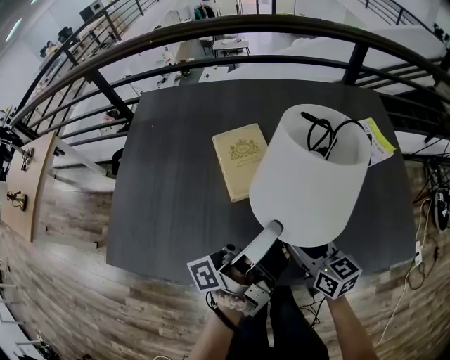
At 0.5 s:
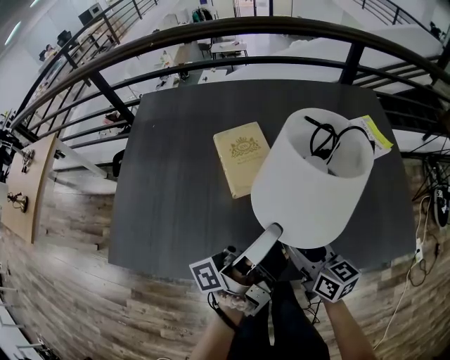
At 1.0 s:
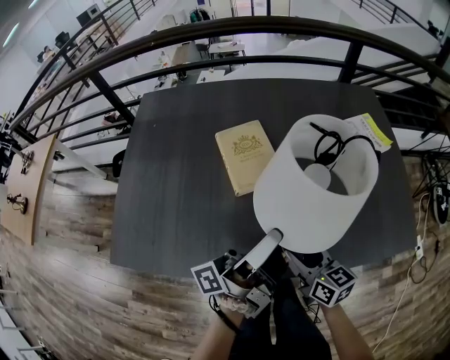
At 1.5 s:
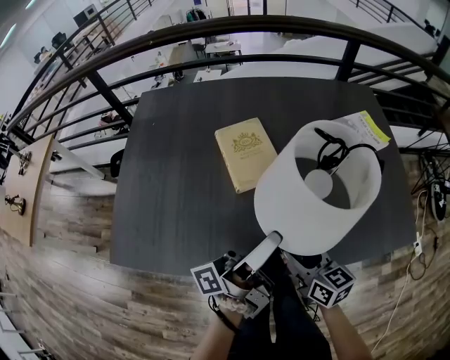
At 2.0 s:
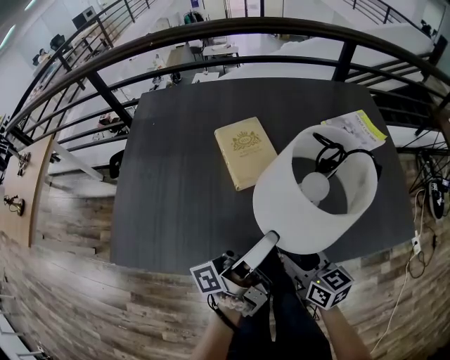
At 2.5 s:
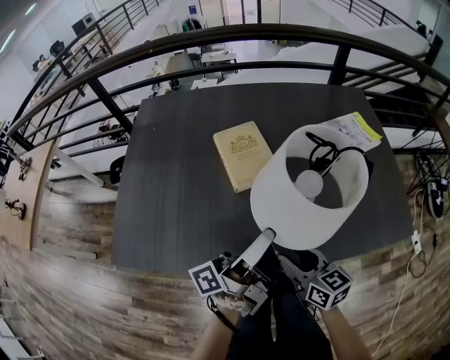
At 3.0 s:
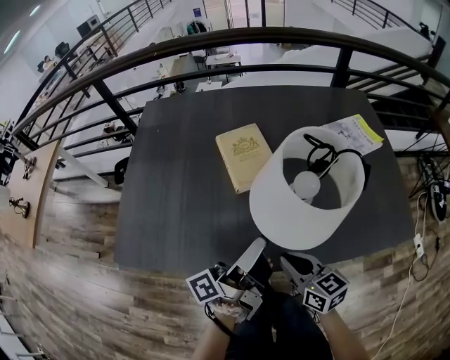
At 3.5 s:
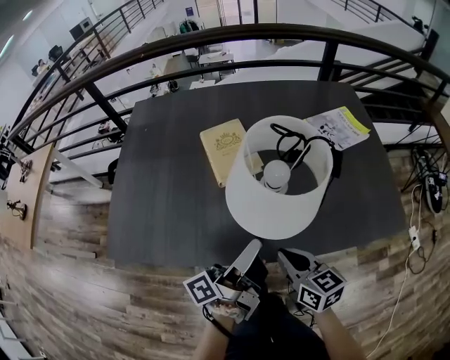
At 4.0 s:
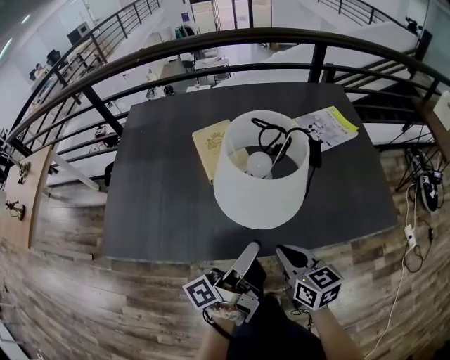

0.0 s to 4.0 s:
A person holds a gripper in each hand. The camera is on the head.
0.0 to 2.0 s: The right gripper ends up some 10 cm from where it was.
2.0 to 4.0 s: The right gripper shifts by approximately 10 cm, and closes up.

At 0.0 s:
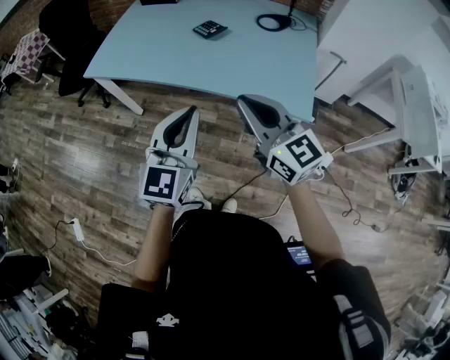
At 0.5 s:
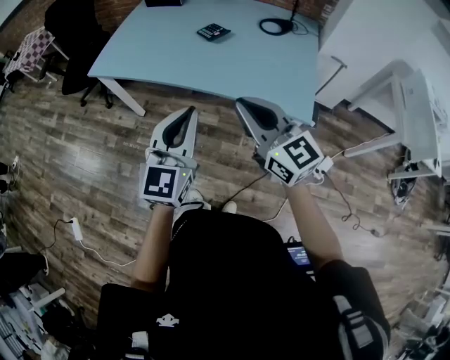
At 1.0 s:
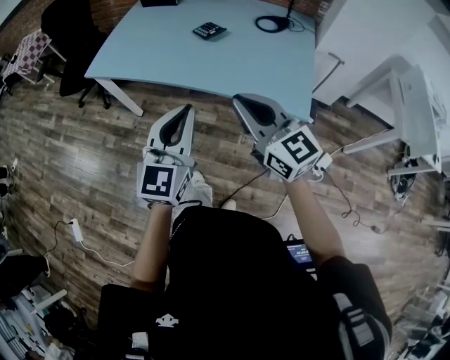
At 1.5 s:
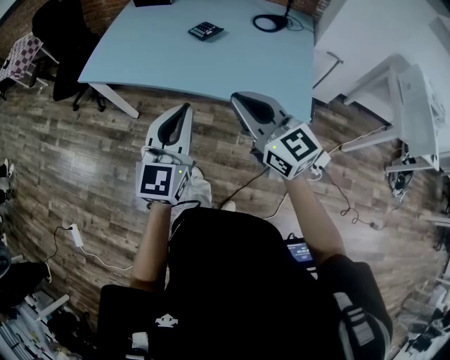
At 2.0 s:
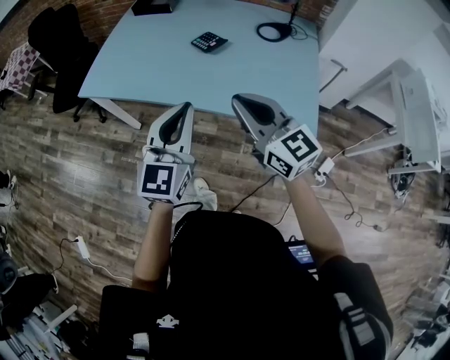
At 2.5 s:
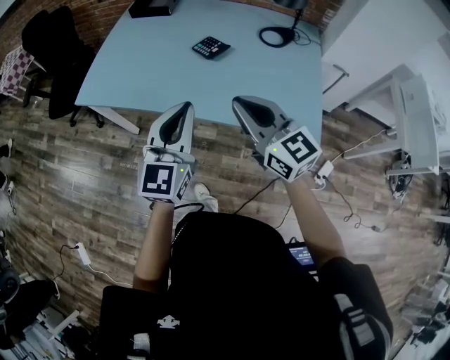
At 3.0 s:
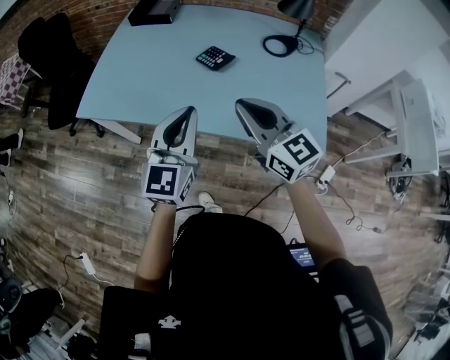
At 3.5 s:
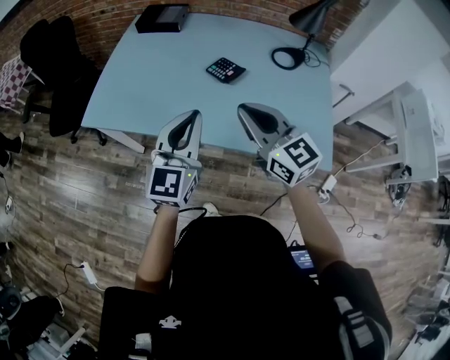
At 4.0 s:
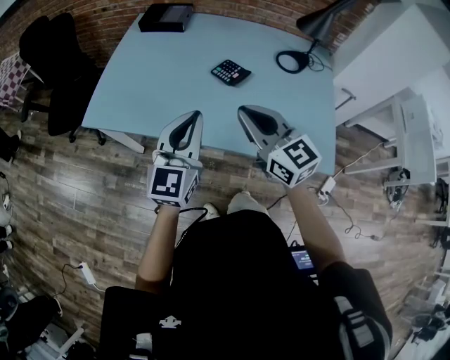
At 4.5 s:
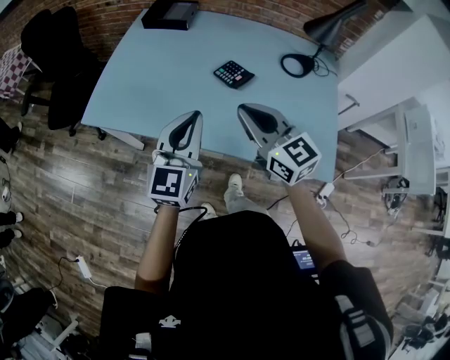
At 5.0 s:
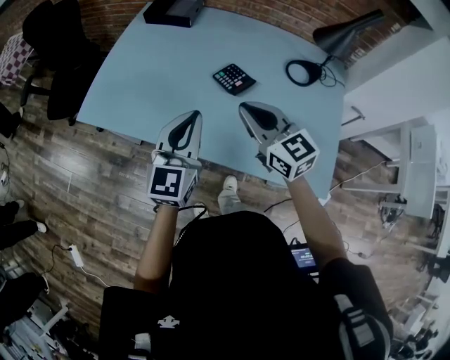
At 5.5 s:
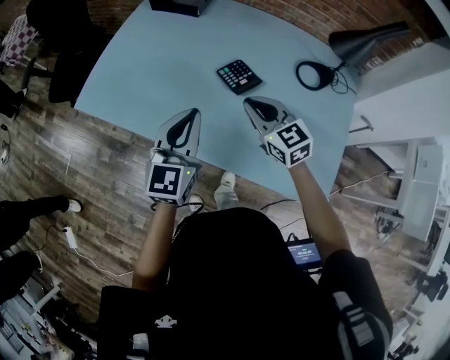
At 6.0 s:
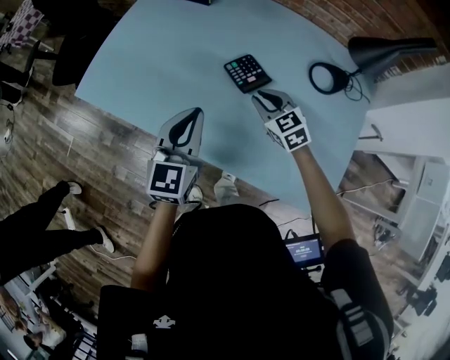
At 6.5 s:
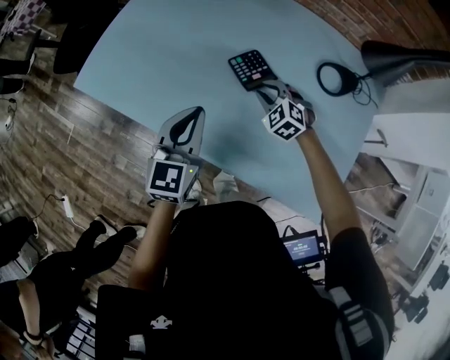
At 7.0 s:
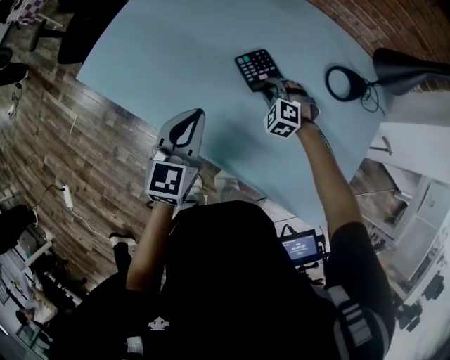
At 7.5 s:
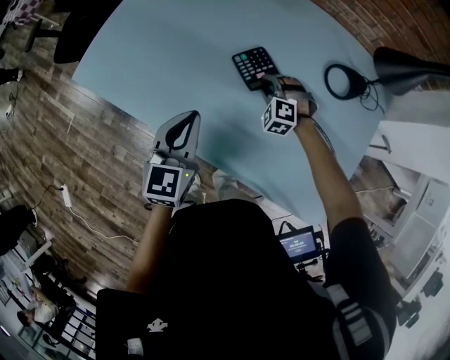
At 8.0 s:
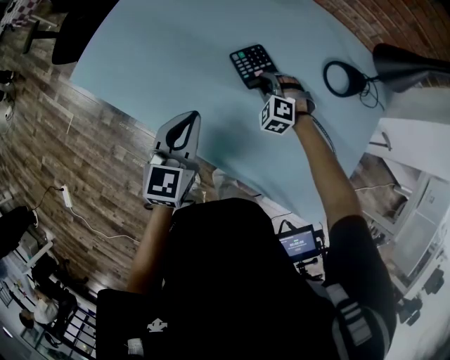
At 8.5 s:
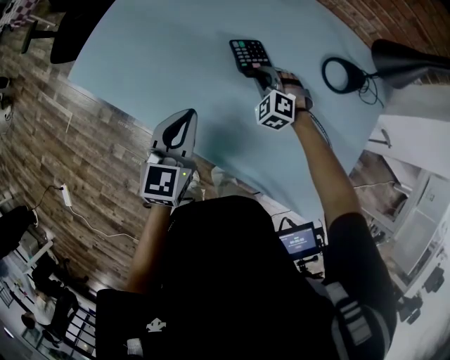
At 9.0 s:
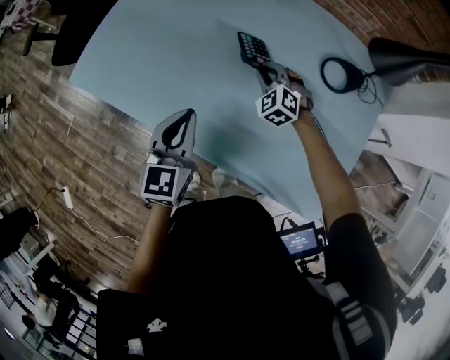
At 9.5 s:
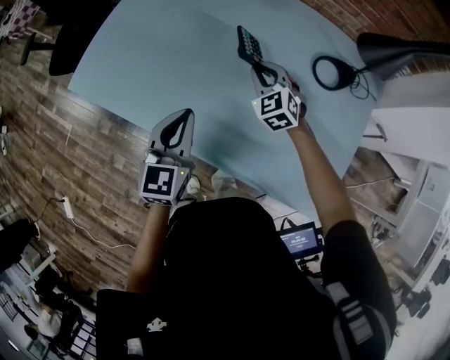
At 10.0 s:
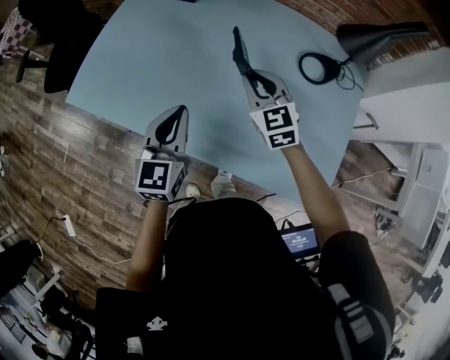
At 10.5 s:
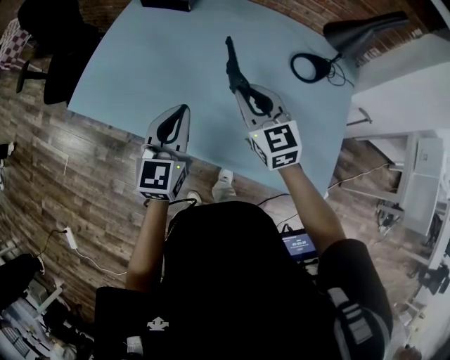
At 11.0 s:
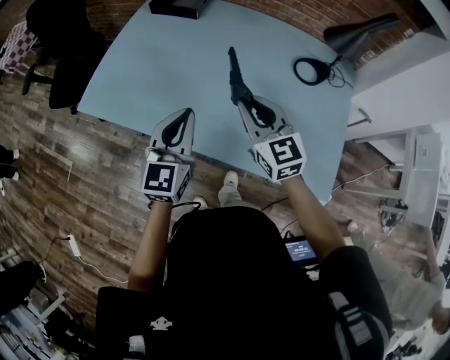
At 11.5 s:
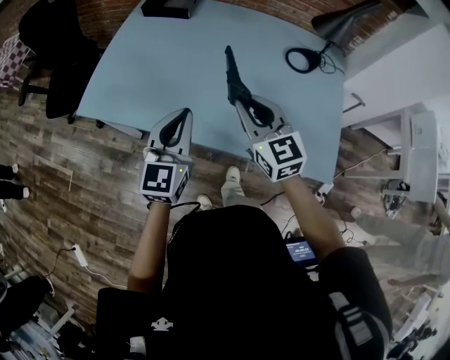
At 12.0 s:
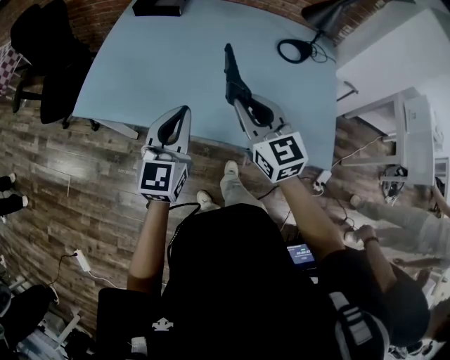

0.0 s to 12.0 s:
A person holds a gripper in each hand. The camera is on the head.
0.0 to 2.0 s: Both grippers travel together forward, roughly 10 cm.
2.0 to 4.0 s: Both grippers travel together forward and to the left, approximately 20 cm.
4.0 to 6.0 s: The left gripper moves forward, downward and to the right, roughly 15 cm. Meanwhile the right gripper shifts roughly 30 cm downward, forward and to the right, and angles its fingers downward, by some 30 degrees.
6.0 to 8.0 s: The right gripper heads downward and forward, covering approximately 15 cm, and twists some 50 degrees counterclockwise, seen from behind, while the left gripper travels downward by about 5 cm.
8.0 to 10.0 s: The right gripper travels upward by some 20 cm, and rolls clockwise, seen from behind, by approximately 50 degrees.
10.0 to 12.0 s: The right gripper goes about 20 cm backward and upward. Meanwhile the left gripper moves backward and upward, approximately 10 cm.

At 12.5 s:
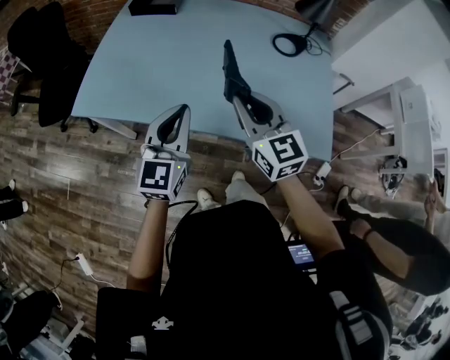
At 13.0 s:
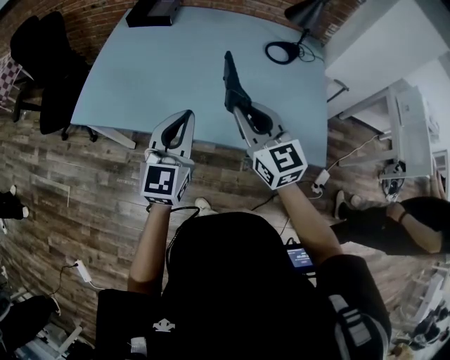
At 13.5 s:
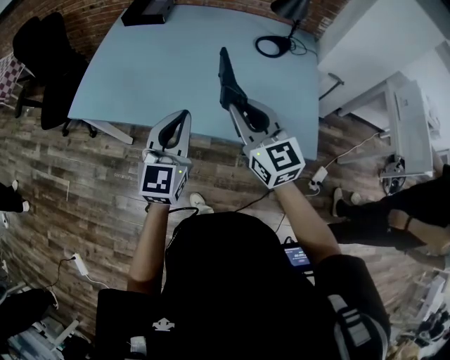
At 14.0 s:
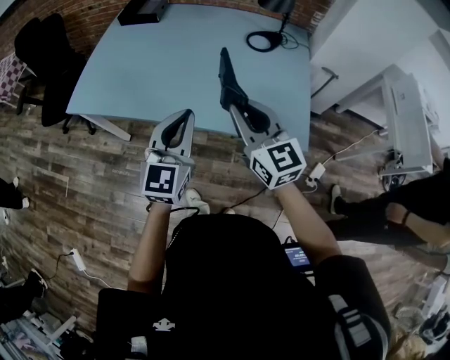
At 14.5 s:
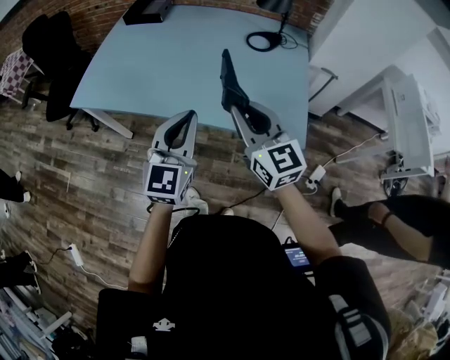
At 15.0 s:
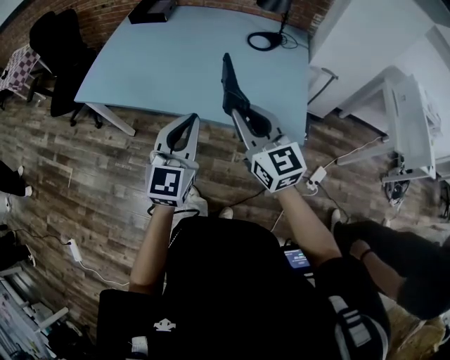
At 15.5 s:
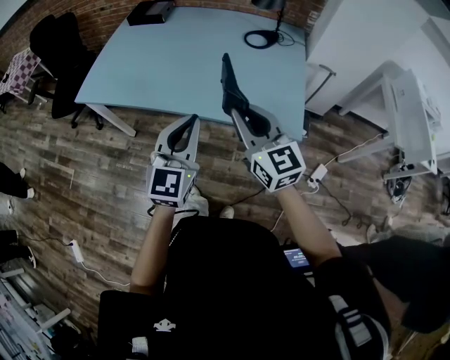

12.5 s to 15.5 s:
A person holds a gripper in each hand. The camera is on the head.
12.5 to 14.0 s: The two grippers go about 15 cm to the right and backward.
14.0 to 15.5 s: Both grippers move backward, some 10 cm.

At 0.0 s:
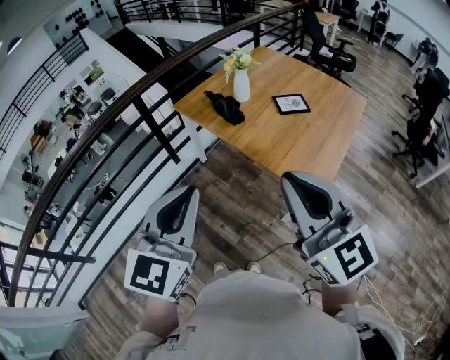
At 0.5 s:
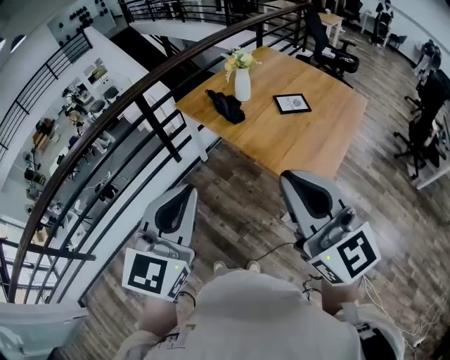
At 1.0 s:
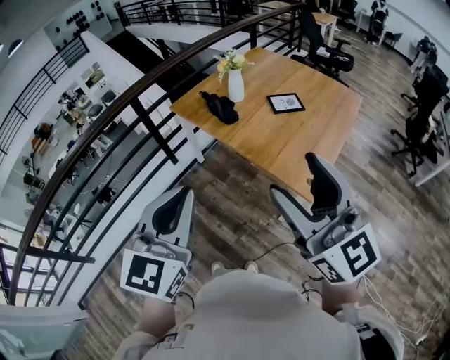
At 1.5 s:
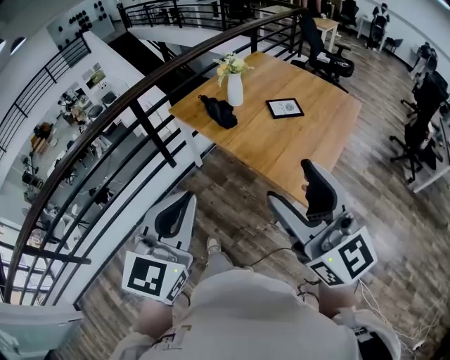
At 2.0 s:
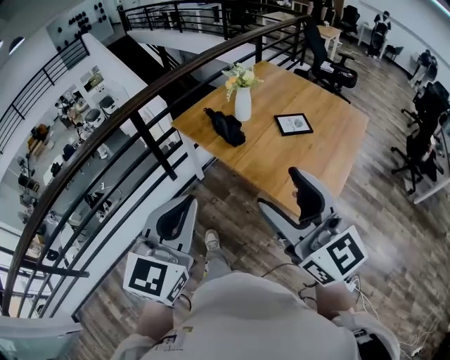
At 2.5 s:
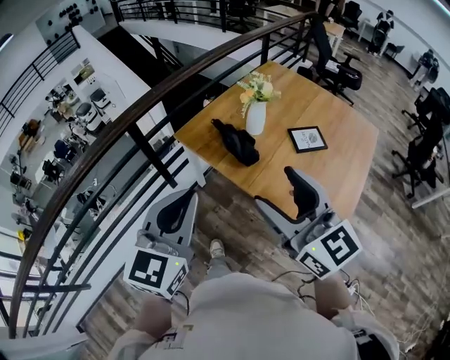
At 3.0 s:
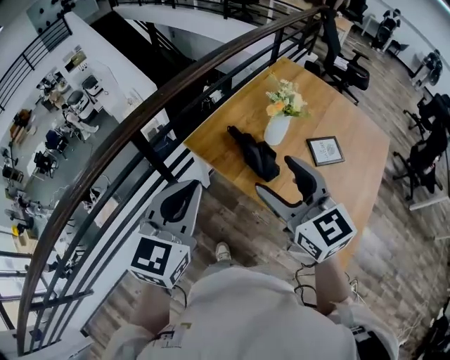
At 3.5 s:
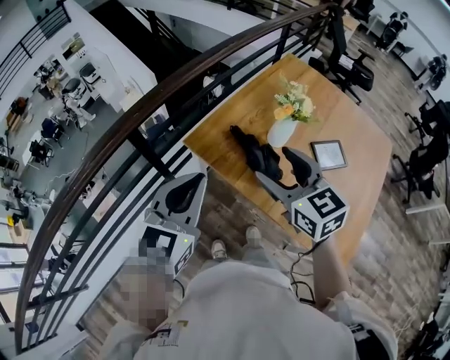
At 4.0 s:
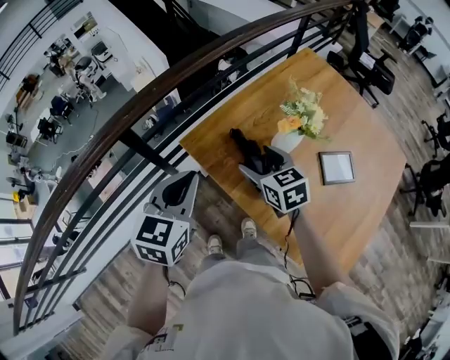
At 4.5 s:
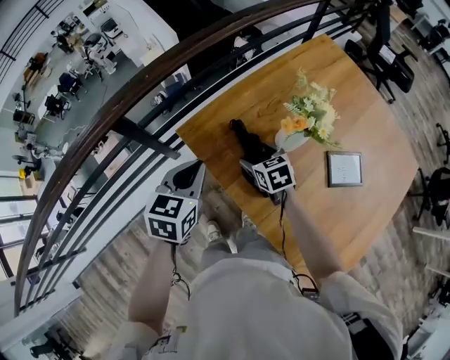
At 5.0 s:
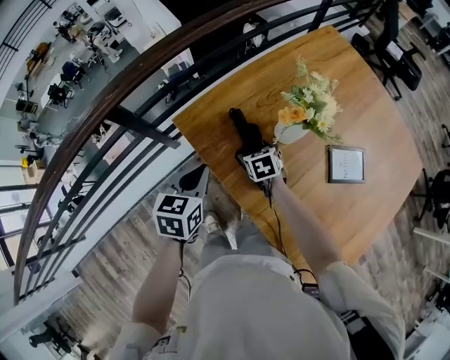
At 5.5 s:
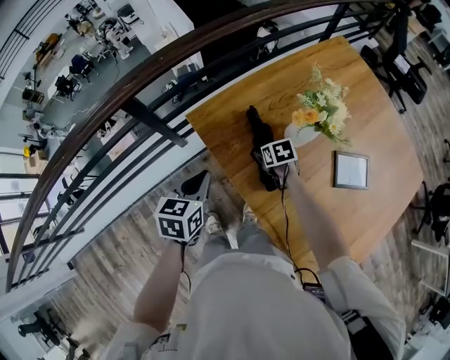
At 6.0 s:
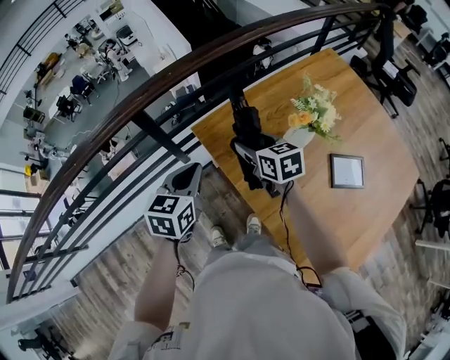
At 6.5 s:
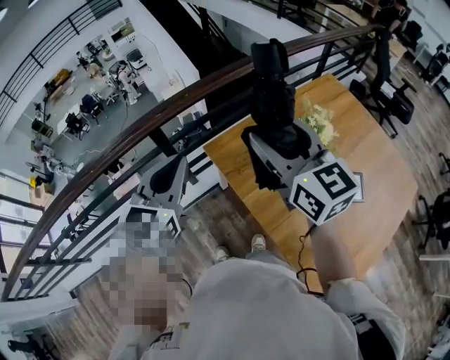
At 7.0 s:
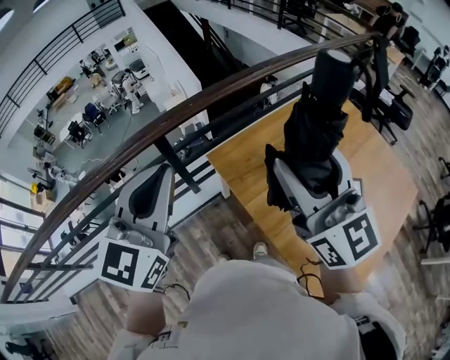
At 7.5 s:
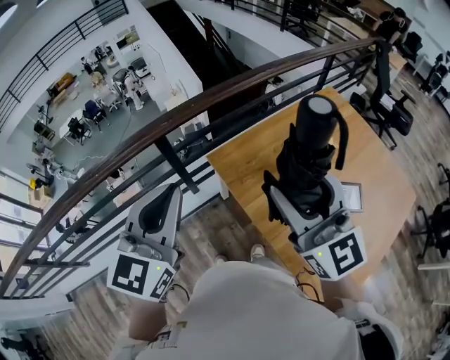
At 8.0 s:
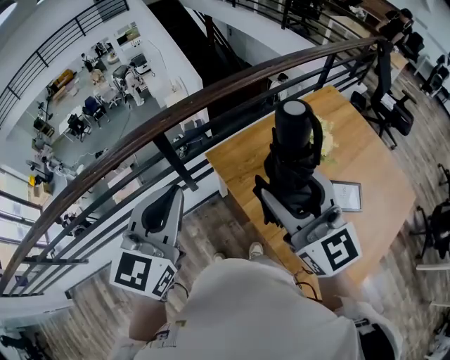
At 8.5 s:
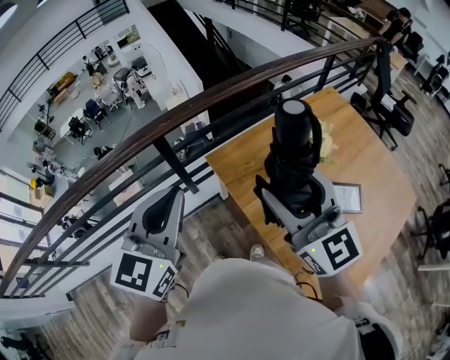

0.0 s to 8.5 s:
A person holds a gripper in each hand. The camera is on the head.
0.0 to 2.0 s: Both grippers travel together forward, approximately 10 cm. The right gripper opens.
2.0 to 4.0 s: The pair of grippers is taken forward, approximately 60 cm. The left gripper swivels approximately 20 degrees. The right gripper is displaced downward by some 30 cm, and points its fingers approximately 40 degrees further downward.
4.0 to 6.5 s: The left gripper travels upward and to the left by some 10 cm. The right gripper travels upward by approximately 25 cm, and angles its fingers upward, by roughly 30 degrees.
6.5 to 8.5 s: The right gripper is displaced backward by roughly 10 cm; the left gripper heads backward and upward, covering approximately 10 cm.
